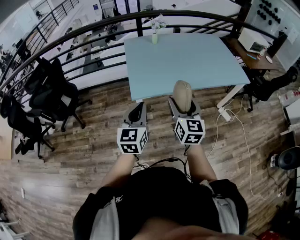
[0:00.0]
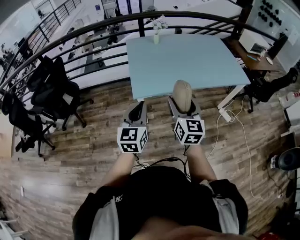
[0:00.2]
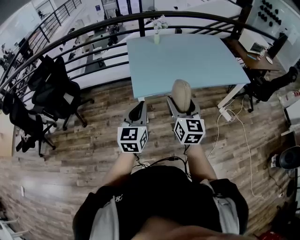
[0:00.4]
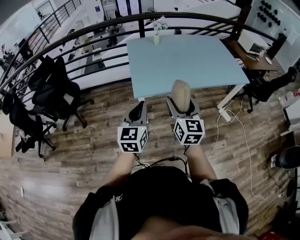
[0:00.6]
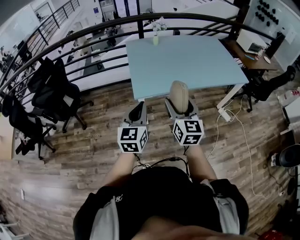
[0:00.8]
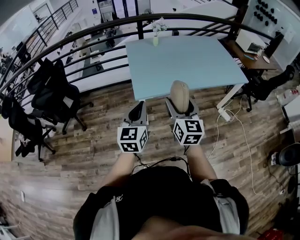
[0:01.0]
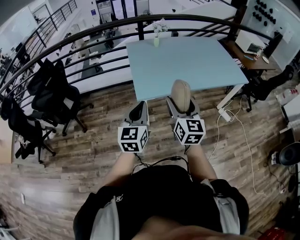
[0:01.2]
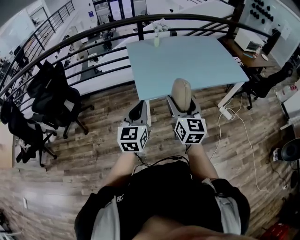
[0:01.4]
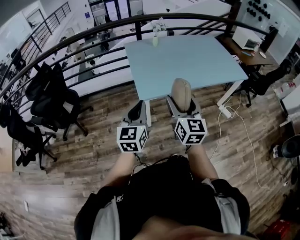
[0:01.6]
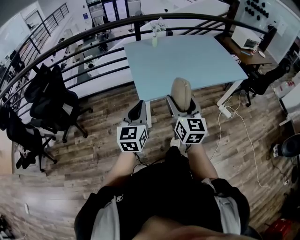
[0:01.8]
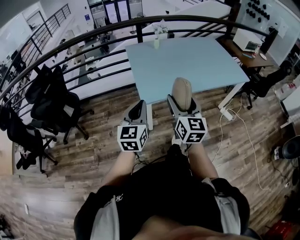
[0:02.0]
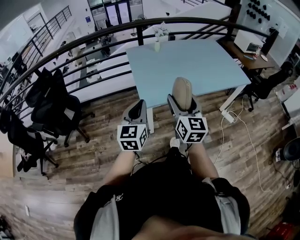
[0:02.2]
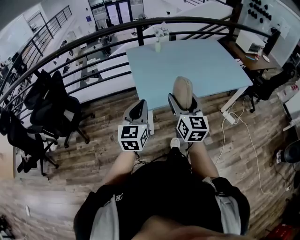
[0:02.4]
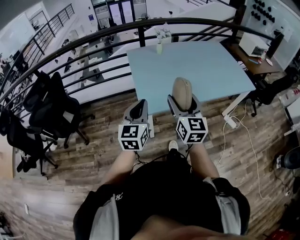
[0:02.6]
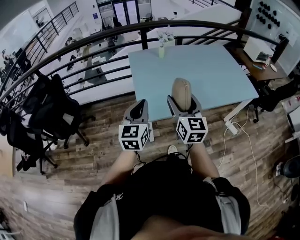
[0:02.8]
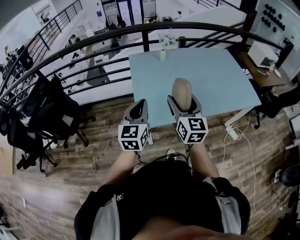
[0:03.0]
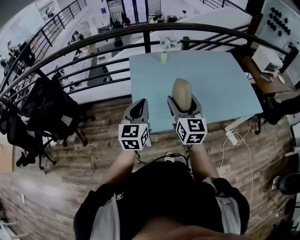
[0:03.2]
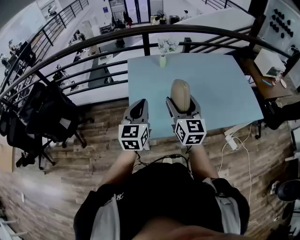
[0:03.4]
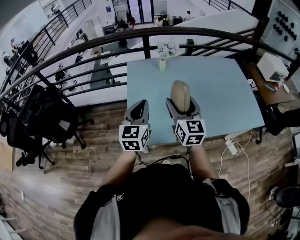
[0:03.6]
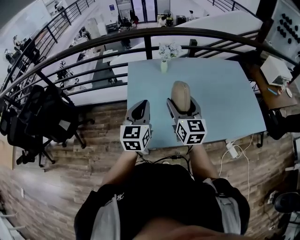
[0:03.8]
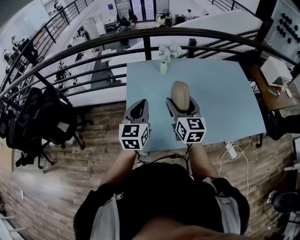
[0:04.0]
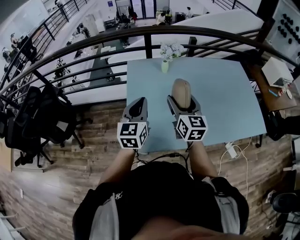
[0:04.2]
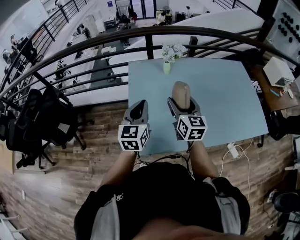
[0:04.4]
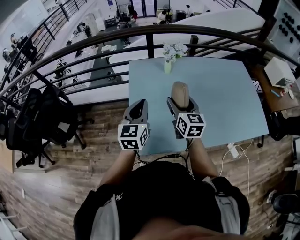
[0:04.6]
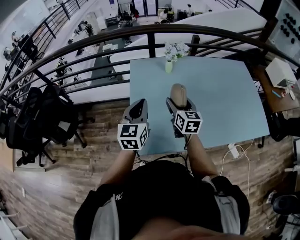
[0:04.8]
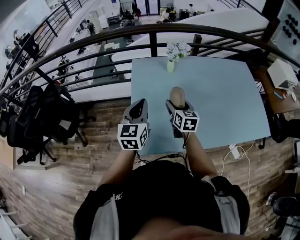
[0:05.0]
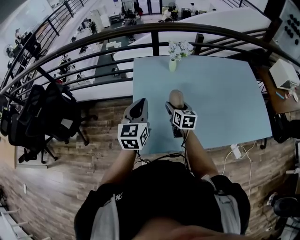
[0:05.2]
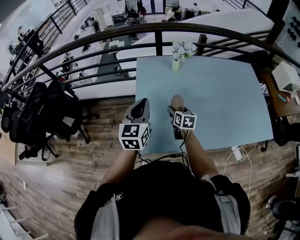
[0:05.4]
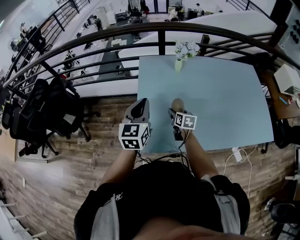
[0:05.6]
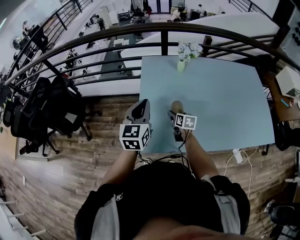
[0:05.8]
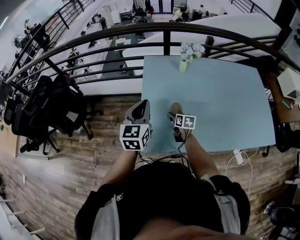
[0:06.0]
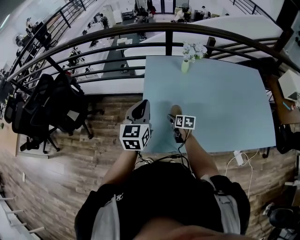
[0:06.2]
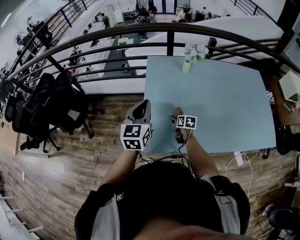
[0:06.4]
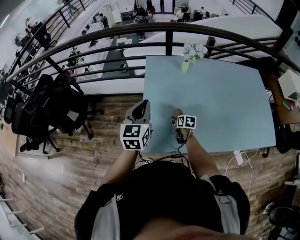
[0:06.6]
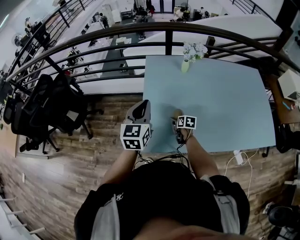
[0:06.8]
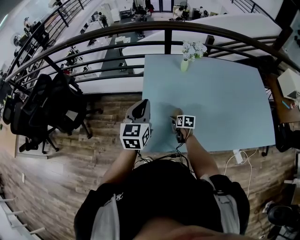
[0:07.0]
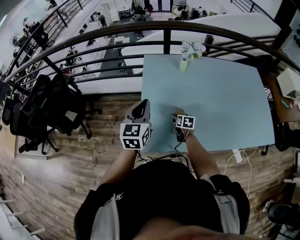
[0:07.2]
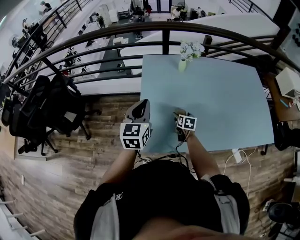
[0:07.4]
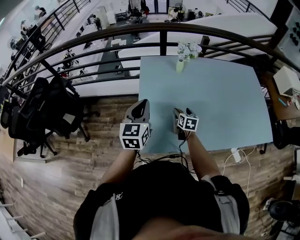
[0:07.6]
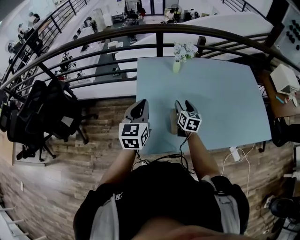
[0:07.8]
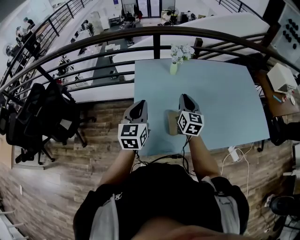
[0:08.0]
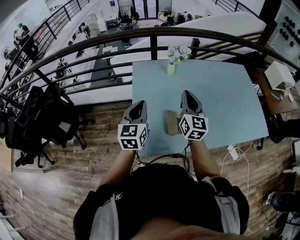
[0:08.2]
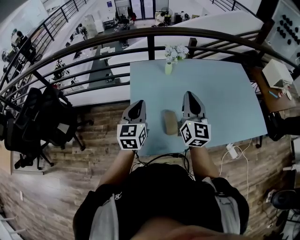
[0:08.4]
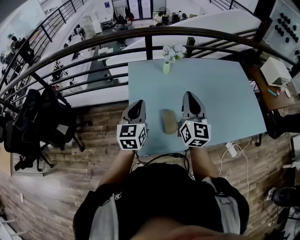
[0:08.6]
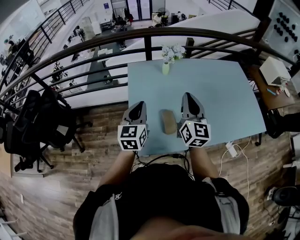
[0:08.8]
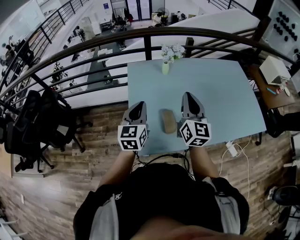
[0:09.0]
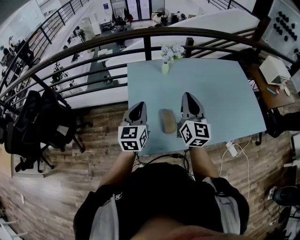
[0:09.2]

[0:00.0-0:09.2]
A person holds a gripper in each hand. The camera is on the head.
0:00.0 to 0:01.6: The two grippers go approximately 10 cm to the left.
0:01.6 to 0:03.0: The two grippers go about 20 cm forward.
0:03.0 to 0:04.6: The two grippers go approximately 25 cm forward.
0:04.6 to 0:06.2: The left gripper travels to the left by approximately 5 cm. The right gripper is displaced downward by roughly 25 cm, and swivels roughly 40 degrees.
0:06.2 to 0:07.6: The right gripper travels to the right by approximately 5 cm.
0:07.6 to 0:09.2: The right gripper is displaced upward by about 30 cm, angles its fingers upward, by some 40 degrees, and closes its fingers.

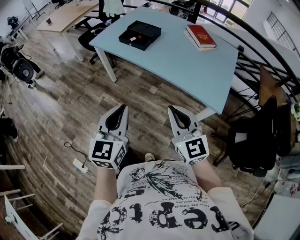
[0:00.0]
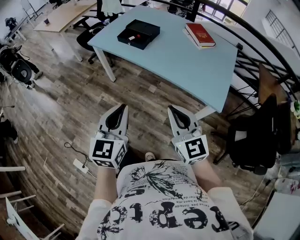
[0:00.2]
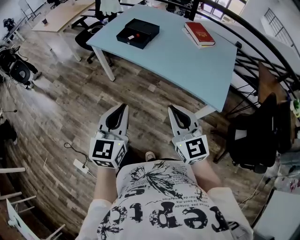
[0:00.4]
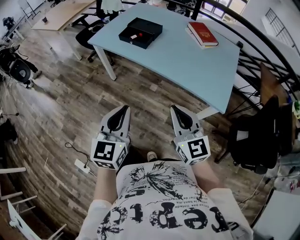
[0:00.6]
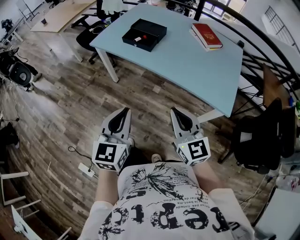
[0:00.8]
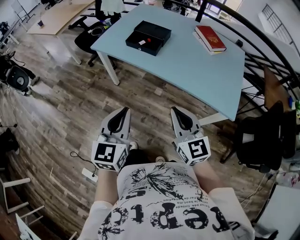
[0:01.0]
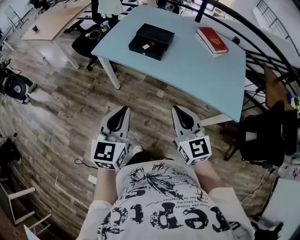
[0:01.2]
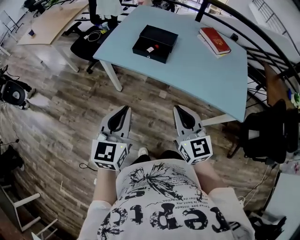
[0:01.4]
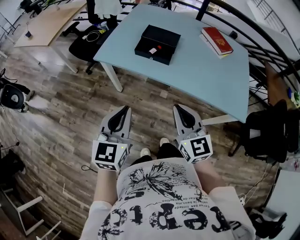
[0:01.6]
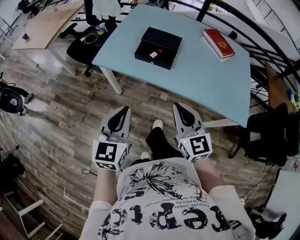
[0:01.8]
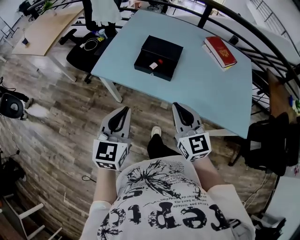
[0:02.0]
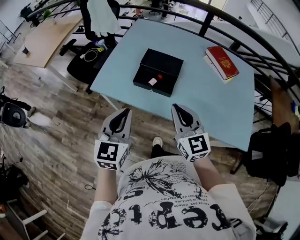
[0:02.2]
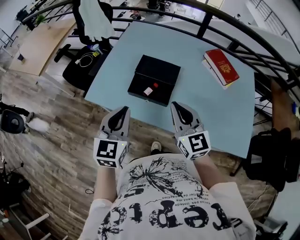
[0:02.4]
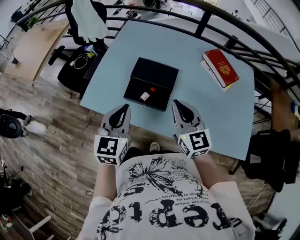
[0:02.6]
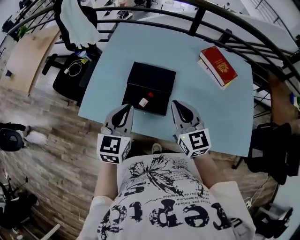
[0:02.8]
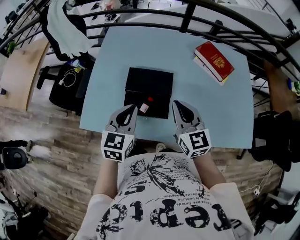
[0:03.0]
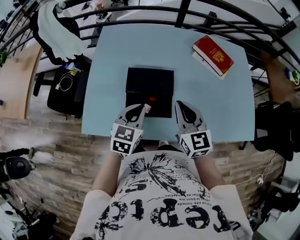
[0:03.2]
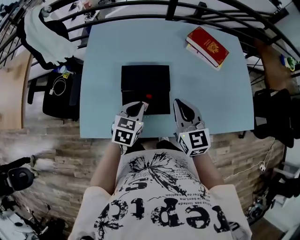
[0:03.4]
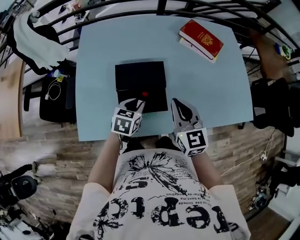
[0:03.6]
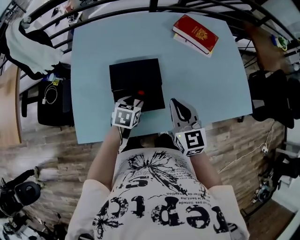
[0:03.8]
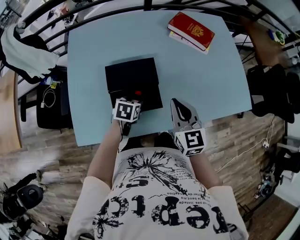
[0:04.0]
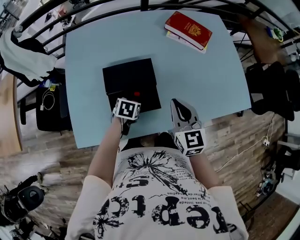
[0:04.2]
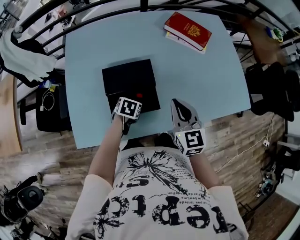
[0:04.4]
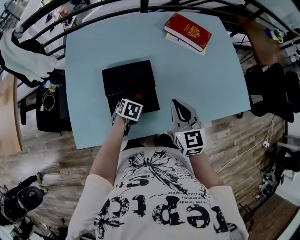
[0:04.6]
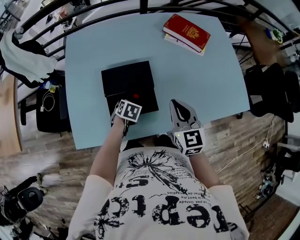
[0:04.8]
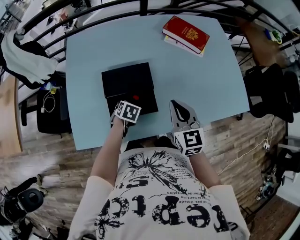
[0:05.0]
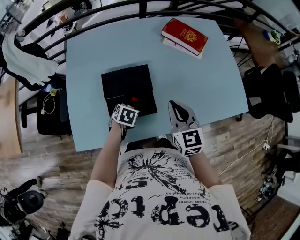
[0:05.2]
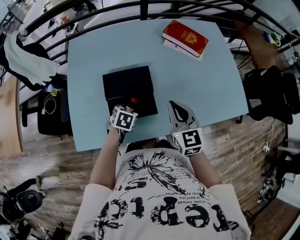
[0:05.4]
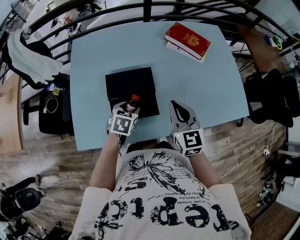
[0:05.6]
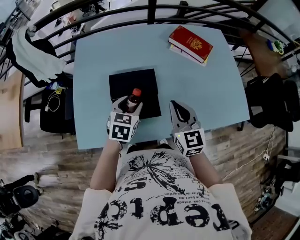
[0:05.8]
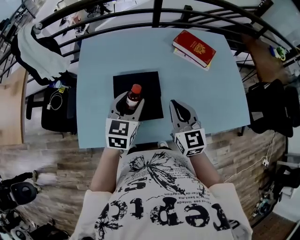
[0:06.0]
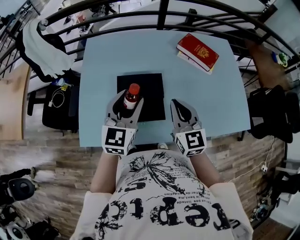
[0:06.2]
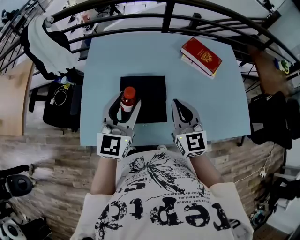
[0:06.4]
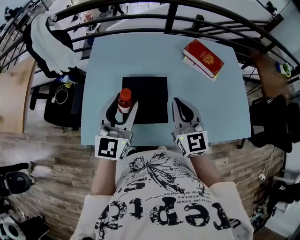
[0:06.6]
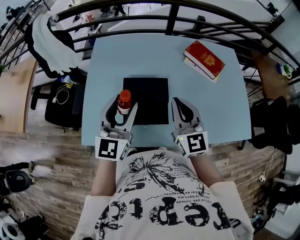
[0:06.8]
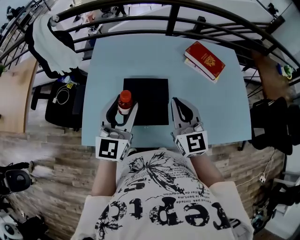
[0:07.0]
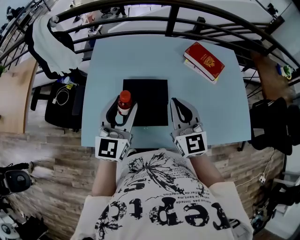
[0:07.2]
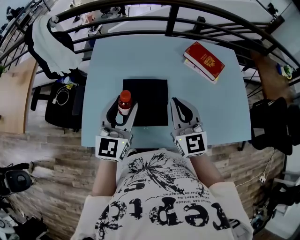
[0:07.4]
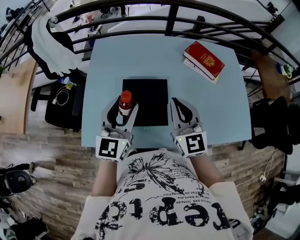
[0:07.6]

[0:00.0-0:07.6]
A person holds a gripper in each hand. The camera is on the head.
0:00.0 to 0:01.6: The two grippers go about 35 cm forward and to the left.
0:01.6 to 0:03.0: Both grippers move forward, approximately 40 cm. The left gripper swivels about 20 degrees.
0:03.0 to 0:04.6: The right gripper heads downward, covering roughly 5 cm, and rotates roughly 20 degrees; the left gripper goes approximately 25 cm downward, tilts its fingers roughly 50 degrees downward, and opens its fingers.
0:04.6 to 0:06.0: The left gripper travels upward by roughly 25 cm, and angles its fingers upward, by some 50 degrees; the right gripper moves about 5 cm.
0:06.0 to 0:07.6: The right gripper shifts roughly 5 cm upward, while the left gripper goes approximately 10 cm upward and to the left, and swivels some 20 degrees.

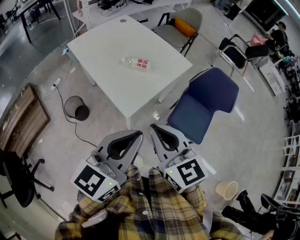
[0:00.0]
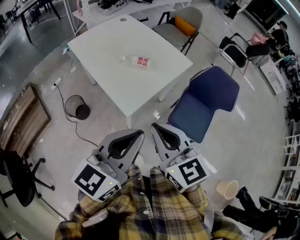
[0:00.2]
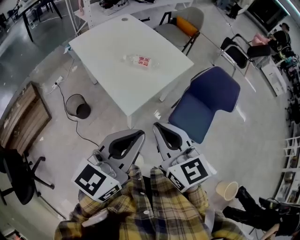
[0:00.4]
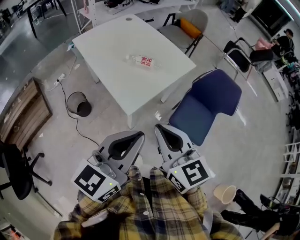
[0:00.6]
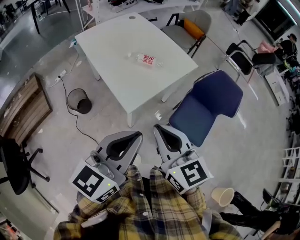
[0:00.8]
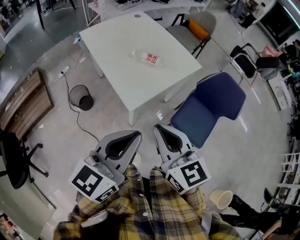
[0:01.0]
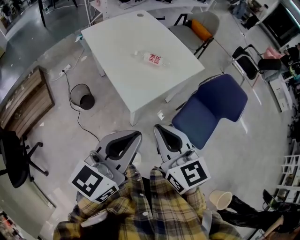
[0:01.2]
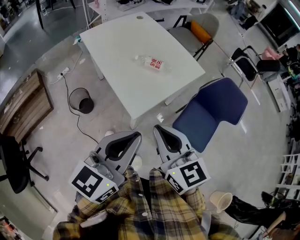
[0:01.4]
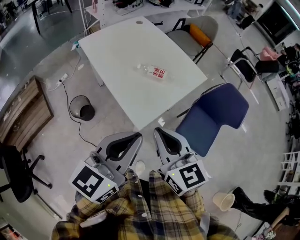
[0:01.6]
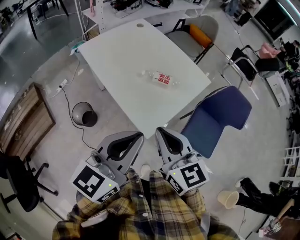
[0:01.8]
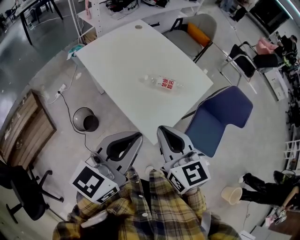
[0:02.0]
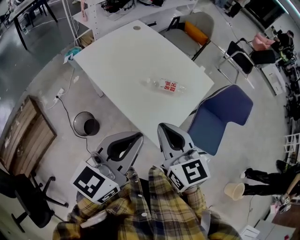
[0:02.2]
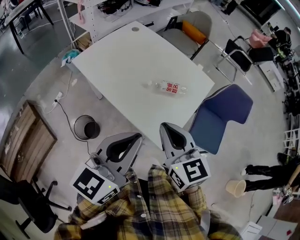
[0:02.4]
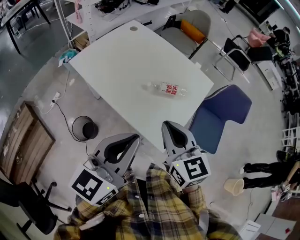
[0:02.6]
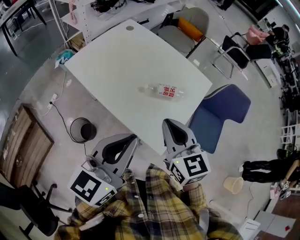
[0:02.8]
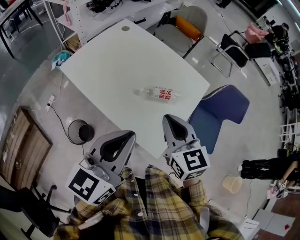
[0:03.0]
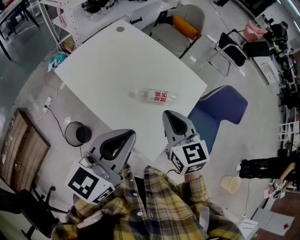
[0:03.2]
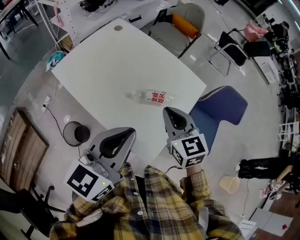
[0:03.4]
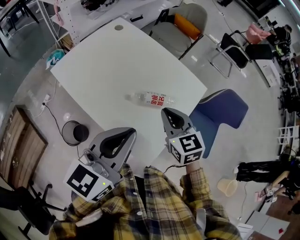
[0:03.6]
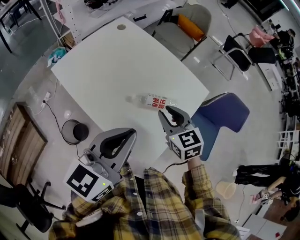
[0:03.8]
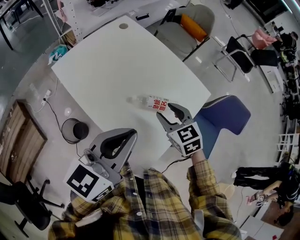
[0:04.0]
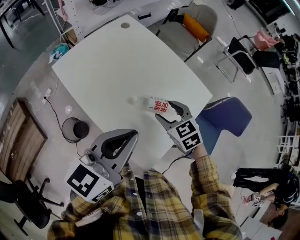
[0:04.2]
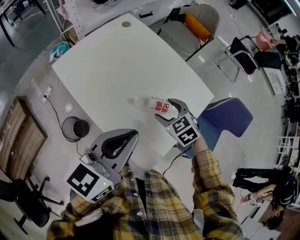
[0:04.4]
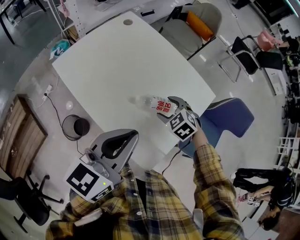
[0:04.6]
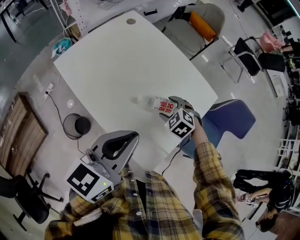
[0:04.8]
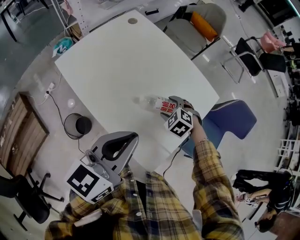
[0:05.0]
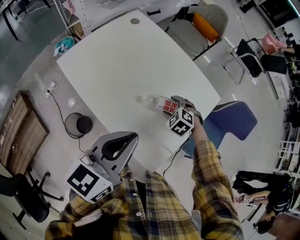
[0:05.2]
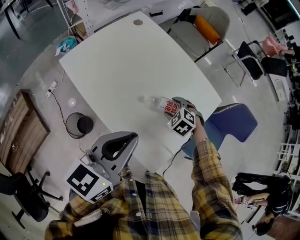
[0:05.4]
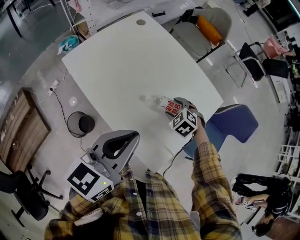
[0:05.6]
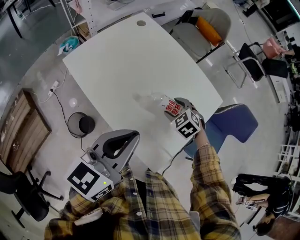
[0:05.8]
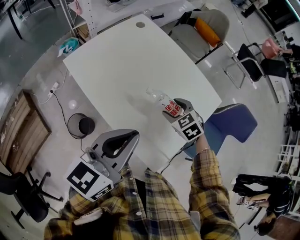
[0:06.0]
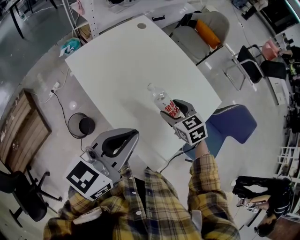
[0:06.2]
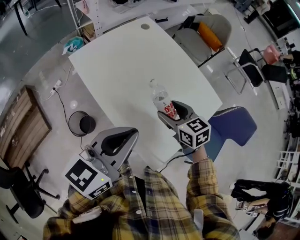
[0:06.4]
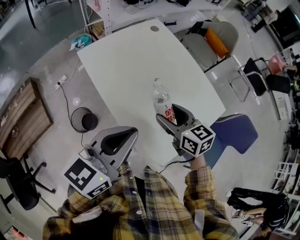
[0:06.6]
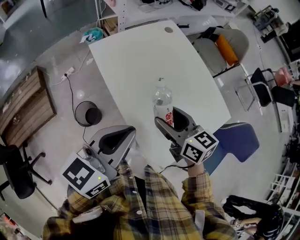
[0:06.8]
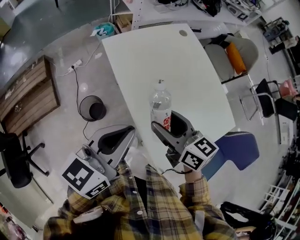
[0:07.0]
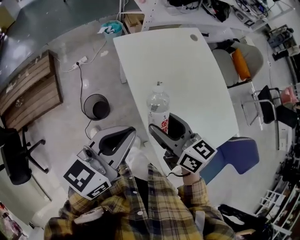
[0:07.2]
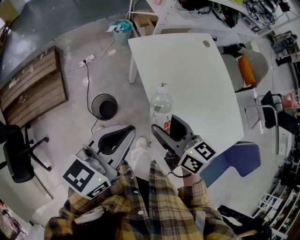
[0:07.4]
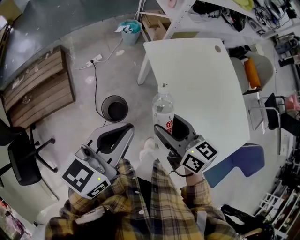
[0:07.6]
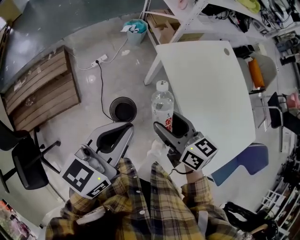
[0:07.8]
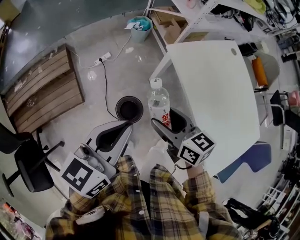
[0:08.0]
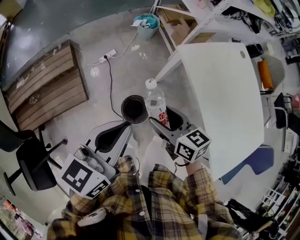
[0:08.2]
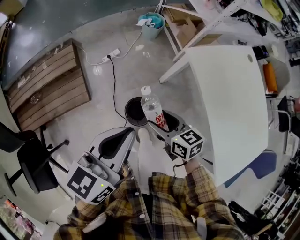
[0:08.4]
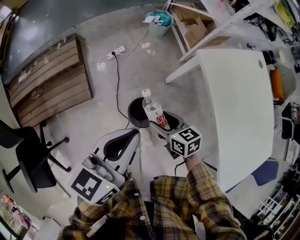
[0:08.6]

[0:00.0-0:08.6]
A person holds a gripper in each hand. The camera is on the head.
0:00.0 to 0:01.4: The grippers move only a little.
0:01.4 to 0:02.8: The right gripper heads forward and to the left, covering approximately 25 cm, and changes its angle by roughly 20 degrees. Meanwhile the left gripper travels to the left and forward by some 25 cm.
0:02.8 to 0:04.4: The right gripper travels forward and downward by some 25 cm, tips its fingers downward by some 30 degrees, and opens; the left gripper shifts about 15 cm forward.
0:04.4 to 0:05.8: The right gripper shifts roughly 5 cm downward.
0:05.8 to 0:07.2: The right gripper moves approximately 30 cm, and tilts its fingers roughly 40 degrees upward, while the left gripper shifts by some 15 cm, and turns by roughly 20 degrees.
0:07.2 to 0:08.6: The right gripper shifts roughly 40 cm to the left, downward and forward, and rotates some 20 degrees, while the left gripper is displaced to the left and forward by about 35 cm.
